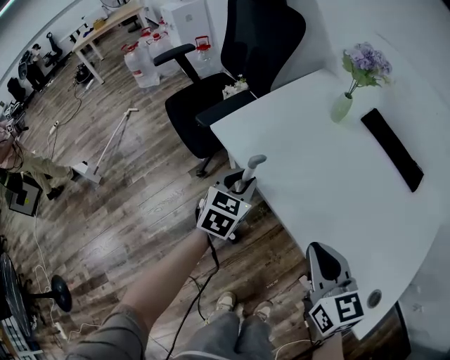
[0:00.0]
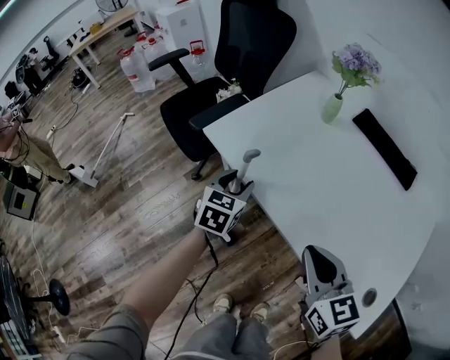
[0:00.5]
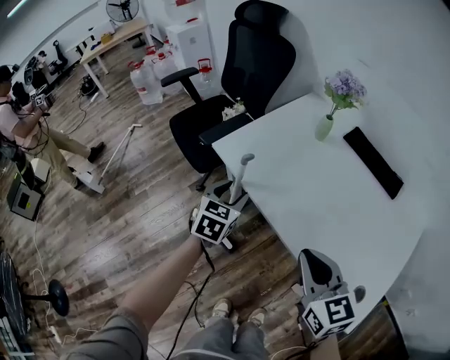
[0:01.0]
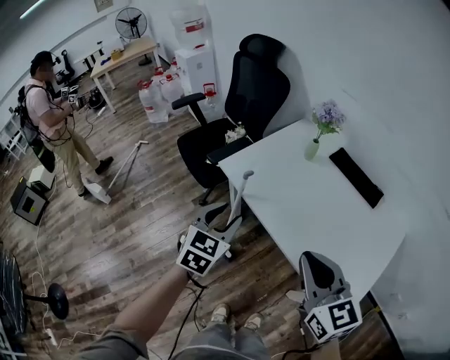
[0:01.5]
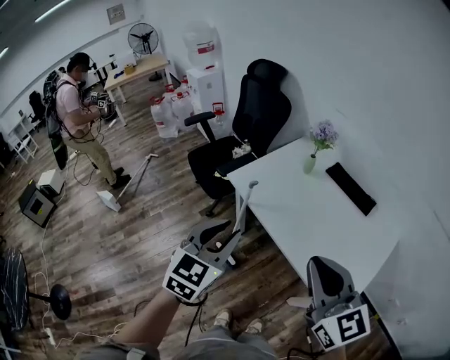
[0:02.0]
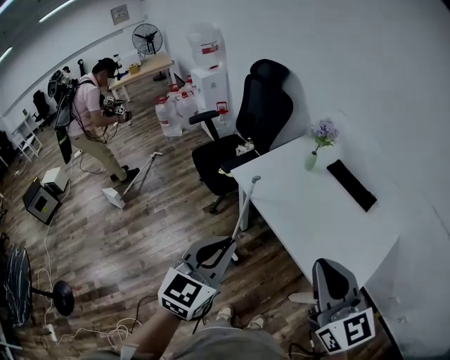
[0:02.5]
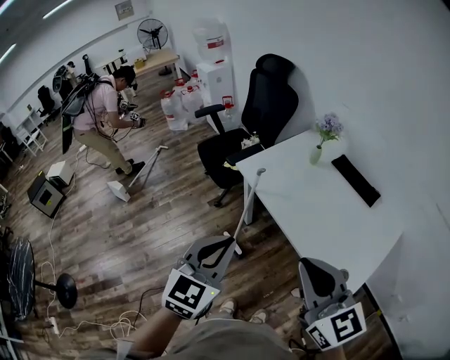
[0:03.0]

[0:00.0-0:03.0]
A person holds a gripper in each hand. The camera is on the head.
0:00.0 to 0:01.5: Both grippers move upward and backward, roughly 25 cm.
0:01.5 to 0:03.0: The left gripper moves backward and upward, about 25 cm, and closes its fingers. Meanwhile the right gripper moves backward and upward, about 15 cm.

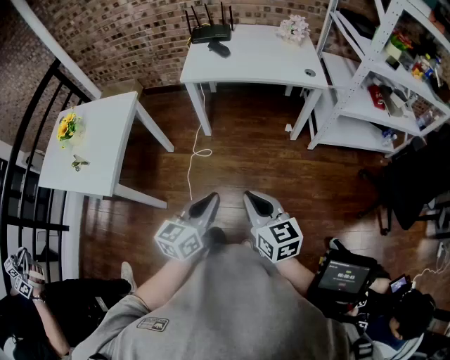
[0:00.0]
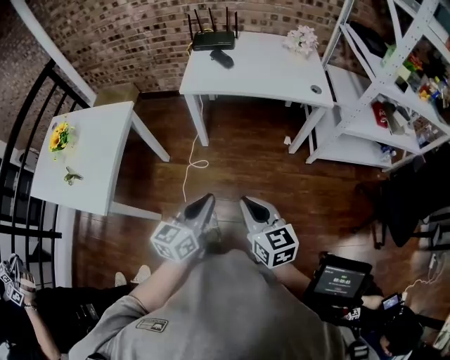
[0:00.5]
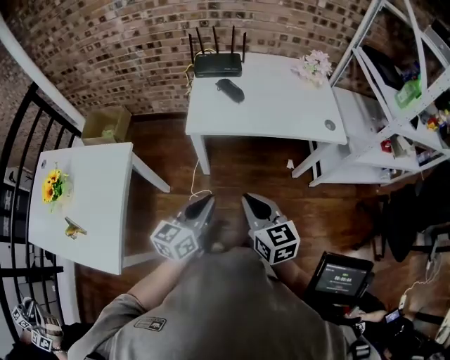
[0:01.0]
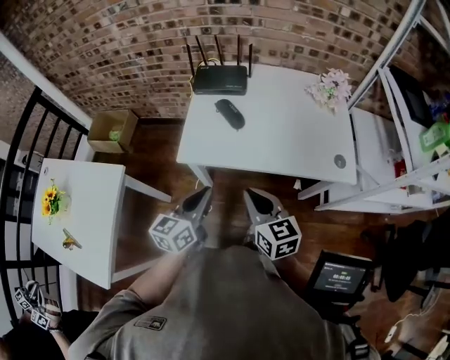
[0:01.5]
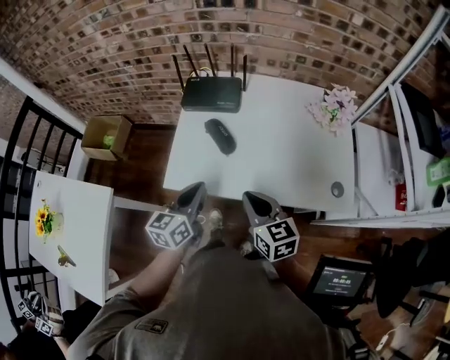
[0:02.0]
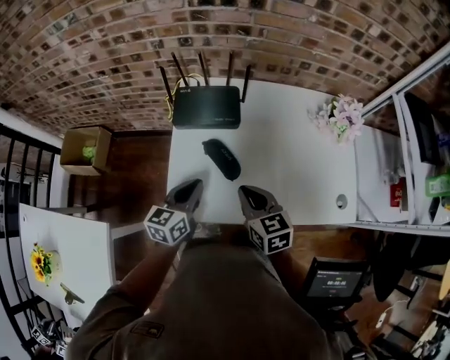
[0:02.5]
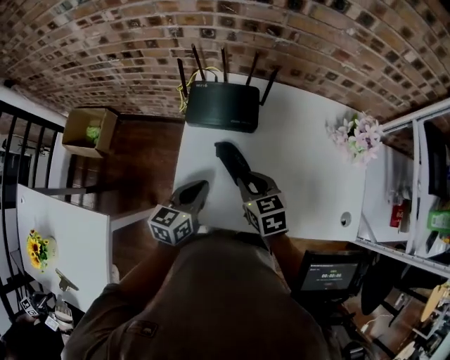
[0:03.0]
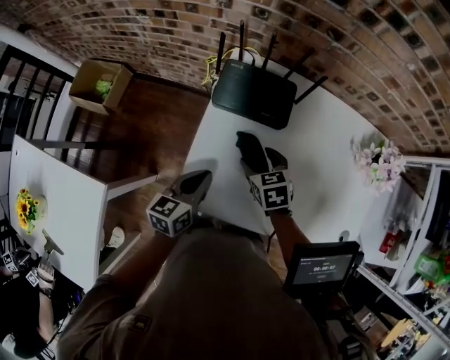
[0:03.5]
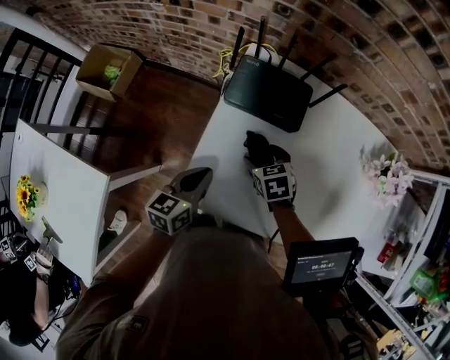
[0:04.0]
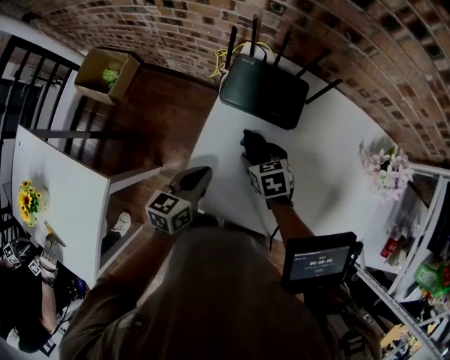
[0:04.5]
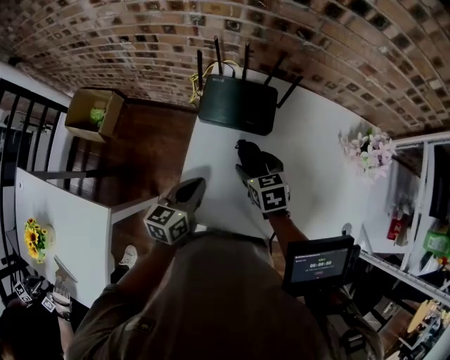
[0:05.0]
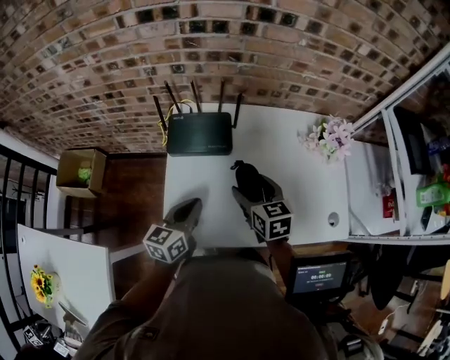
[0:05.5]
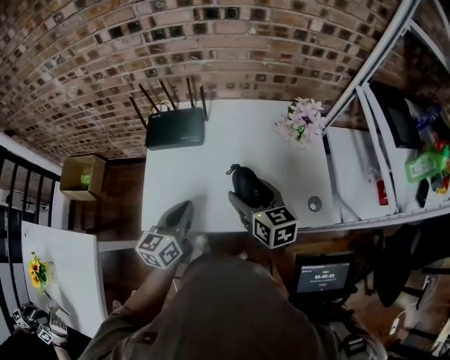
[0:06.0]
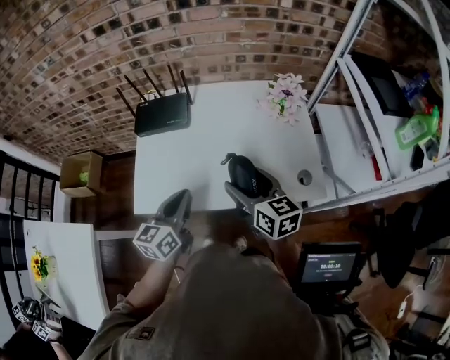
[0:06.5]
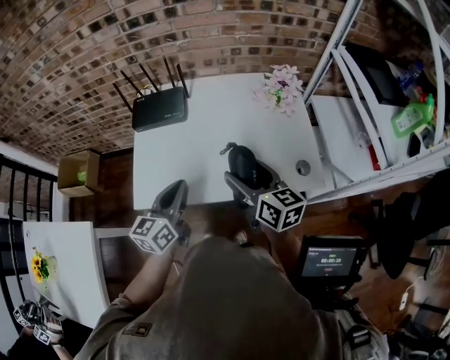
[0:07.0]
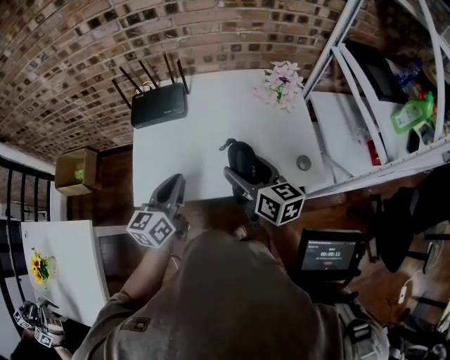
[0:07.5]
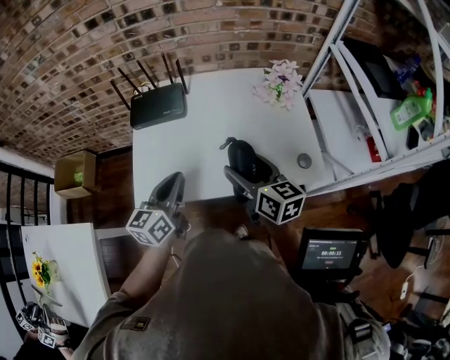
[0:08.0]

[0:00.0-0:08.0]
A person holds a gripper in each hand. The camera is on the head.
0:00.0 to 0:02.0: The pair of grippers is taken forward, some 60 cm.
0:02.0 to 0:04.0: The right gripper is displaced forward and downward by about 30 cm, tilts its fingers some 40 degrees downward, and opens. The left gripper is displaced forward, downward and to the left by some 20 cm.
0:04.0 to 0:06.0: The right gripper is displaced upward, to the right and backward by some 30 cm, and angles its fingers upward, by some 40 degrees. Meanwhile the left gripper heads to the right, upward and backward, covering some 20 cm.
0:06.0 to 0:08.0: The right gripper heads backward, covering some 5 cm.

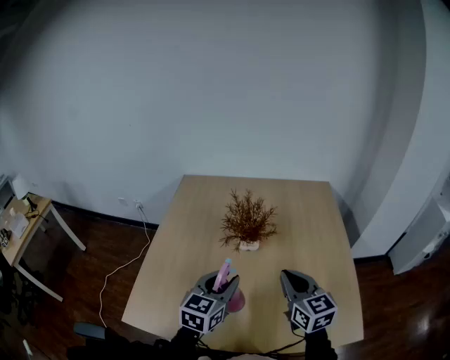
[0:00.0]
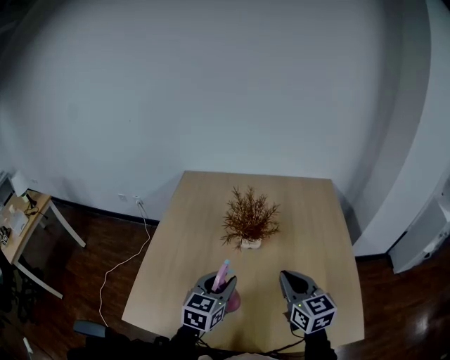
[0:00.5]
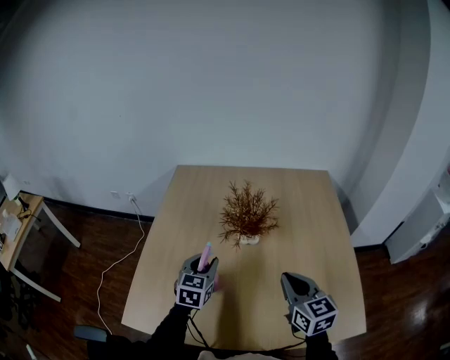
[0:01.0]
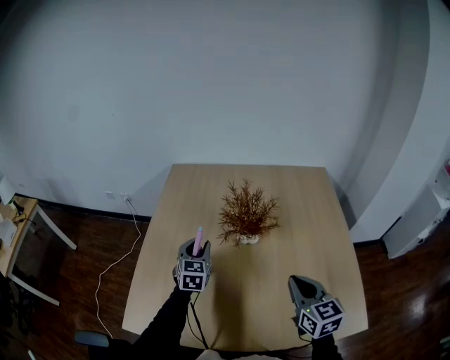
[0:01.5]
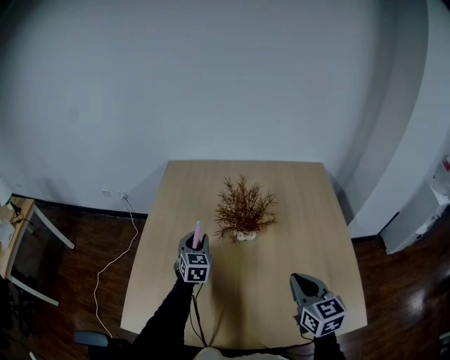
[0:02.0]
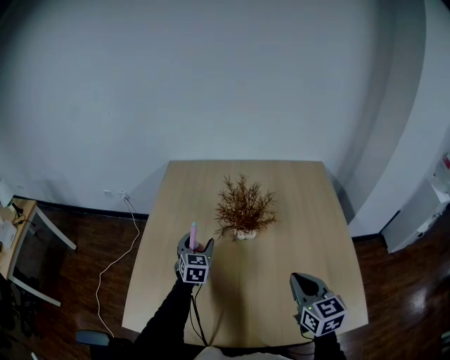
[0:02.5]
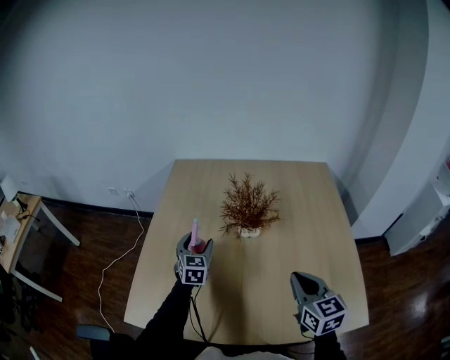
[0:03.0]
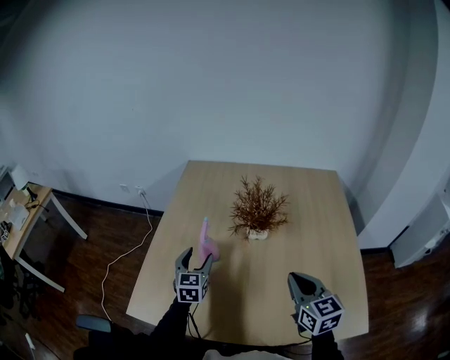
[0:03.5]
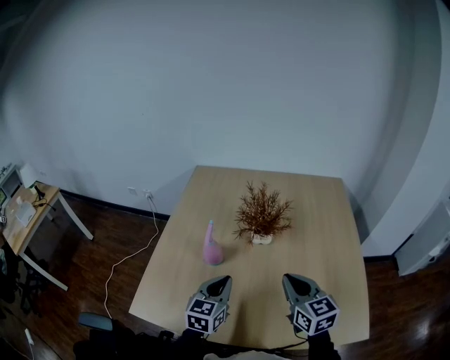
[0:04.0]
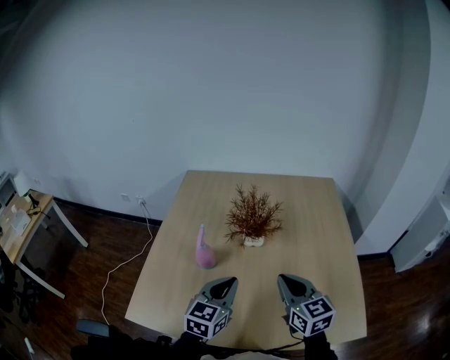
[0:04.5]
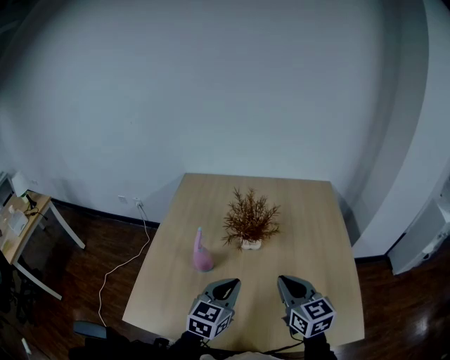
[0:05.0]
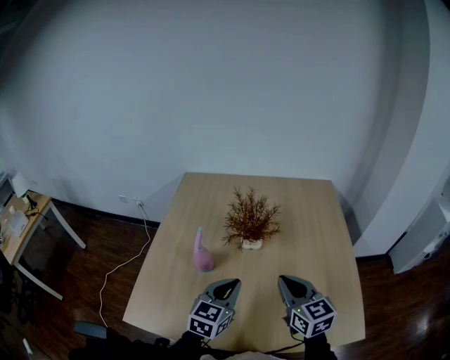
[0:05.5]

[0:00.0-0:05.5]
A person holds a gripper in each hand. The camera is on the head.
0:00.0 to 0:02.0: The left gripper travels forward, to the left and downward by roughly 25 cm, and swivels some 30 degrees.
0:02.0 to 0:03.5: The left gripper heads backward, covering about 10 cm, and opens.
0:03.5 to 0:05.5: The left gripper travels to the right, backward and upward by roughly 20 cm, turns by approximately 20 degrees, and closes up.

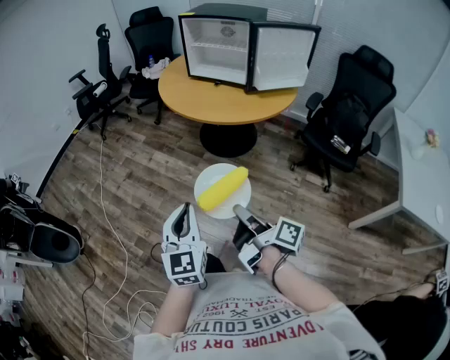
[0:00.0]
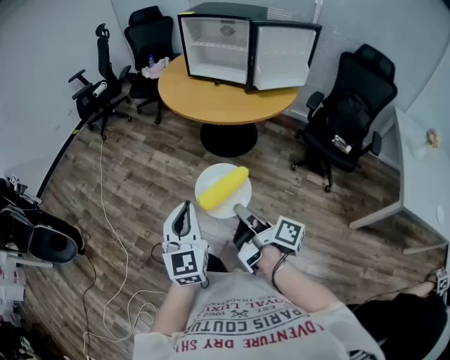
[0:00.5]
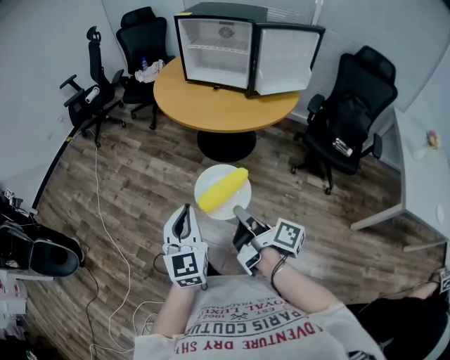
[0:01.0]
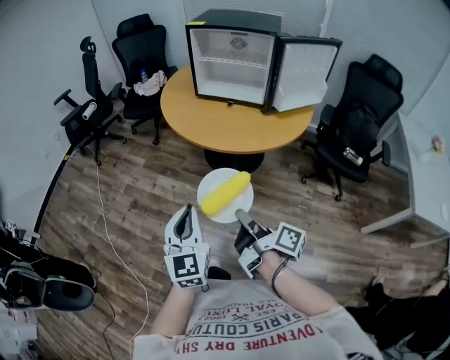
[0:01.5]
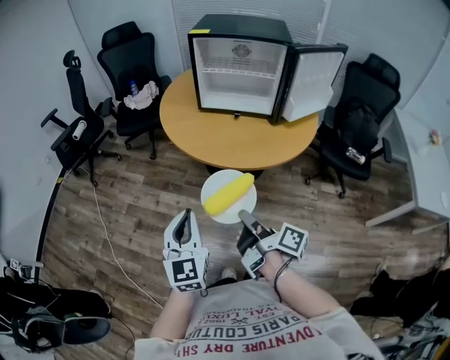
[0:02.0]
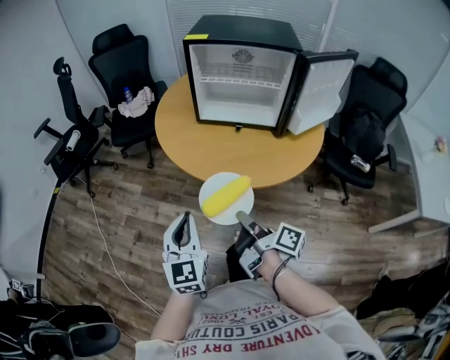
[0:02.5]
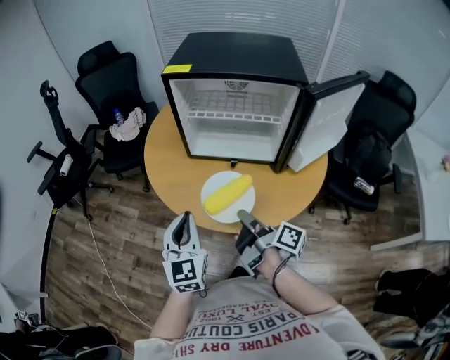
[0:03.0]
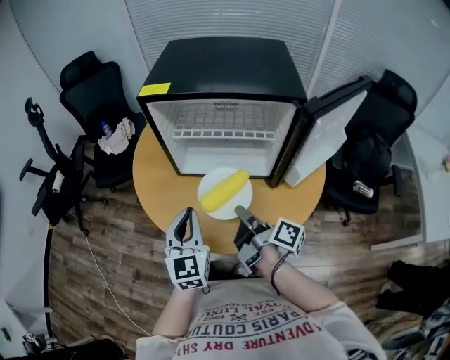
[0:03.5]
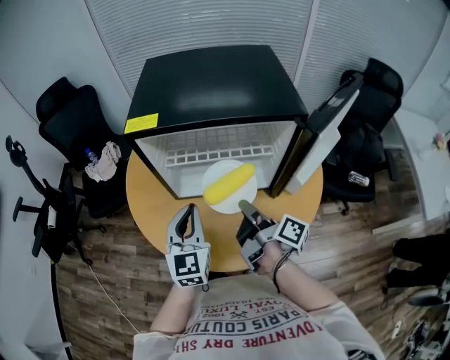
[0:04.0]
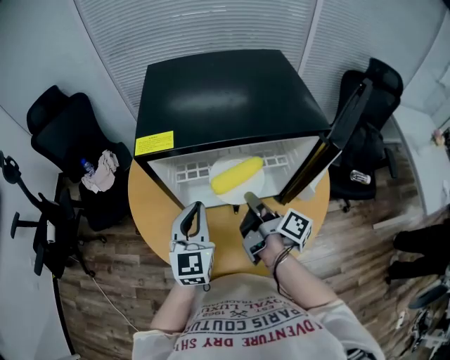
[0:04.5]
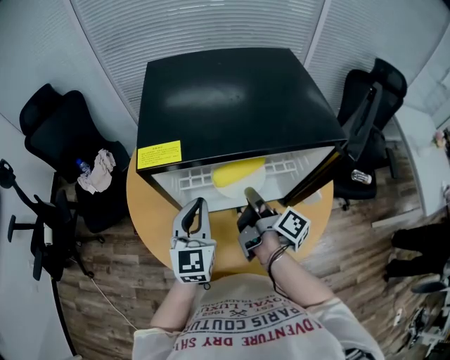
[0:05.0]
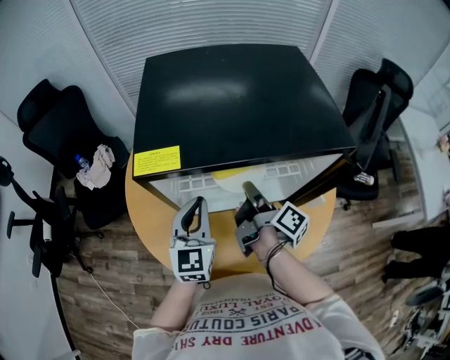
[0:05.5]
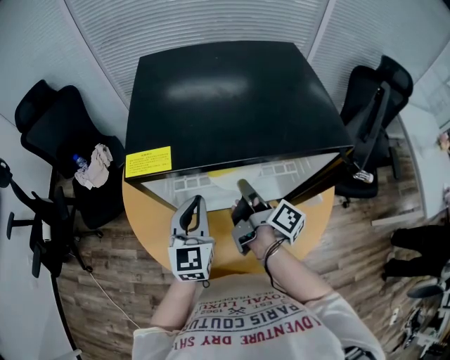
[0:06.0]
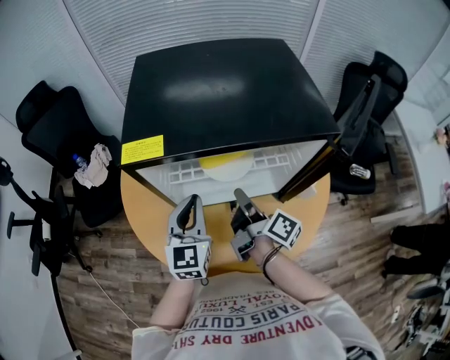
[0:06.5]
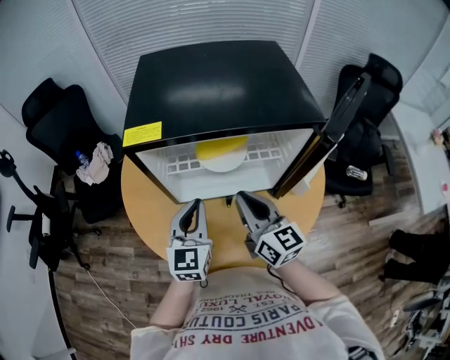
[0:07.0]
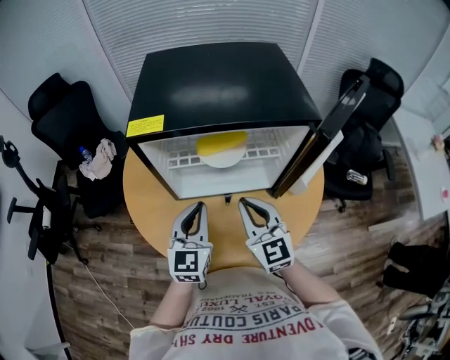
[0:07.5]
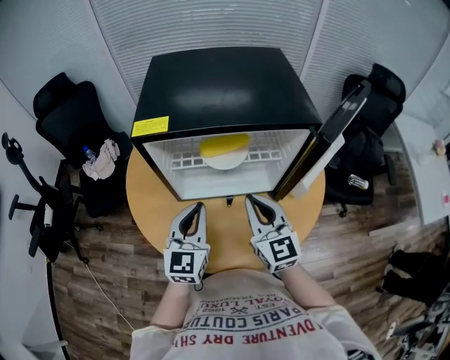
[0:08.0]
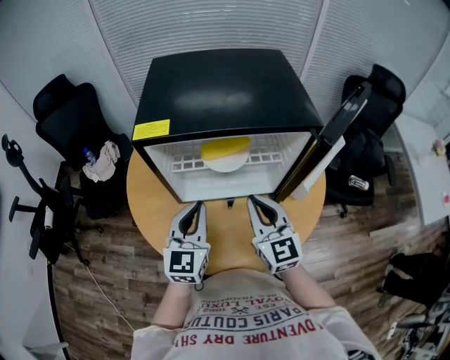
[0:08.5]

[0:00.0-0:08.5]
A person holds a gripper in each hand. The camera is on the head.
0:00.0 to 0:02.0: The left gripper moves roughly 35 cm.
0:02.0 to 0:04.0: The left gripper moves about 50 cm.
0:04.0 to 0:06.5: The left gripper changes place by roughly 10 cm.
0:06.5 to 0:08.5: The left gripper changes place by some 5 cm.

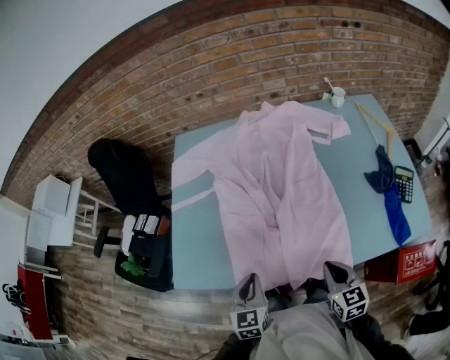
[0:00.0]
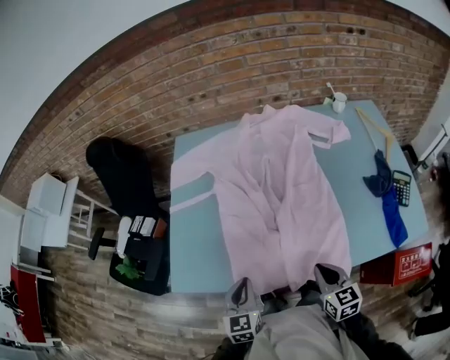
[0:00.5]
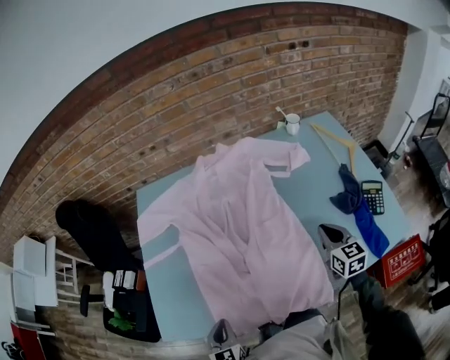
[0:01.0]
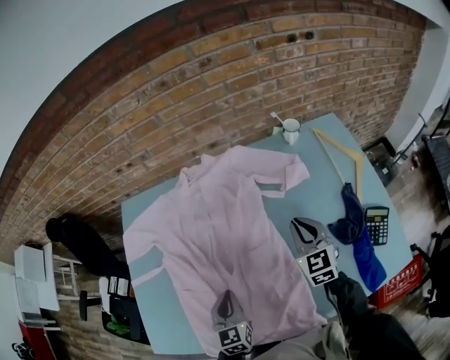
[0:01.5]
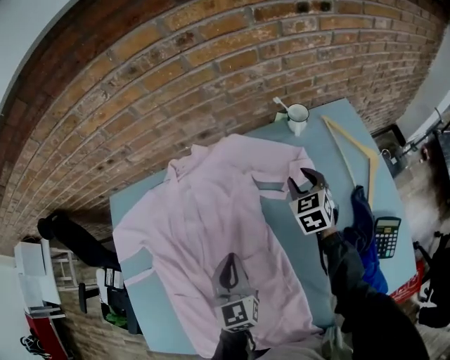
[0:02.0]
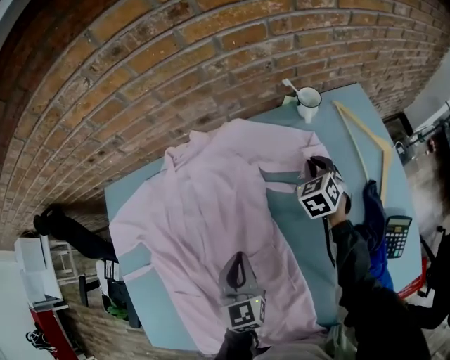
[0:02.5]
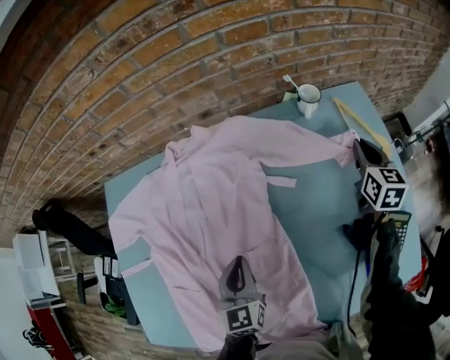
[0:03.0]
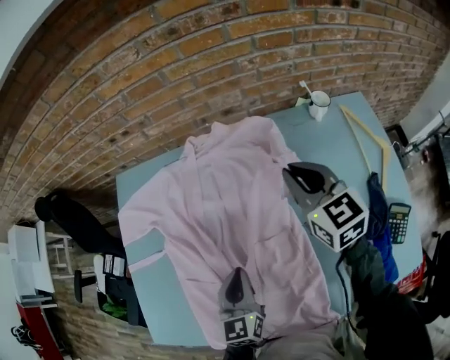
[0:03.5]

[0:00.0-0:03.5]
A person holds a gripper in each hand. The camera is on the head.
0:00.0 to 0:02.0: The grippers both shift forward and to the right by approximately 50 cm. The right gripper rotates approximately 20 degrees, and opens its fingers.
0:02.0 to 0:03.5: The right gripper shifts approximately 20 cm upward and to the left, rotates approximately 30 degrees, and closes its fingers. The left gripper is displaced backward and to the left by approximately 10 cm.
